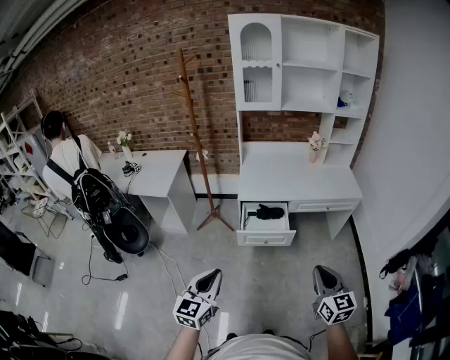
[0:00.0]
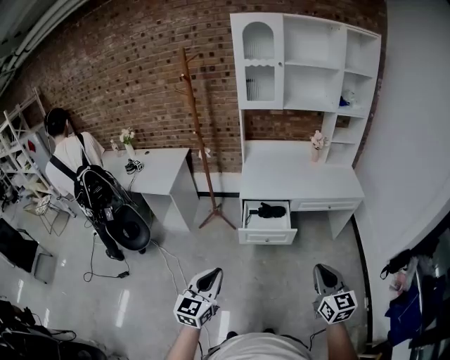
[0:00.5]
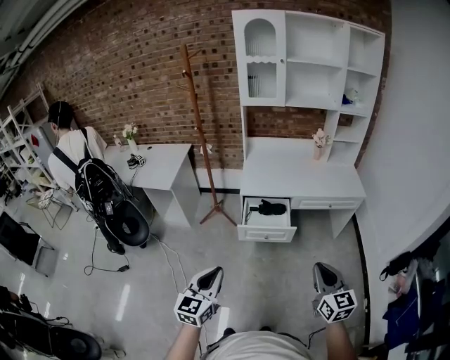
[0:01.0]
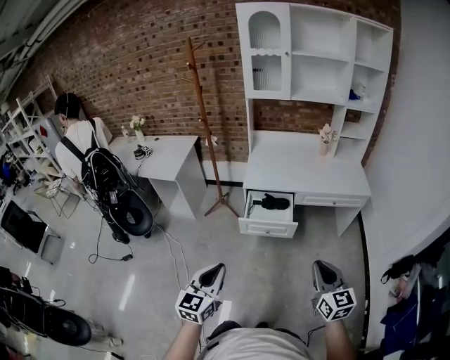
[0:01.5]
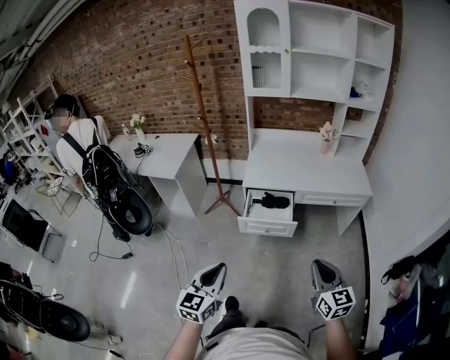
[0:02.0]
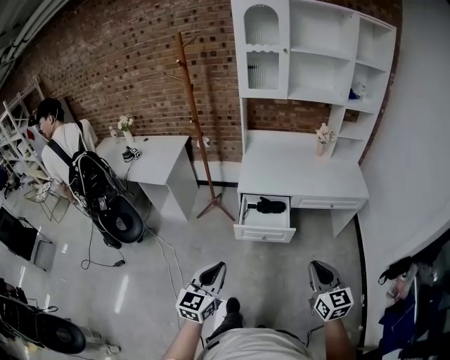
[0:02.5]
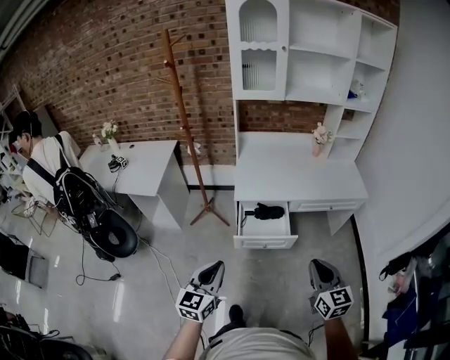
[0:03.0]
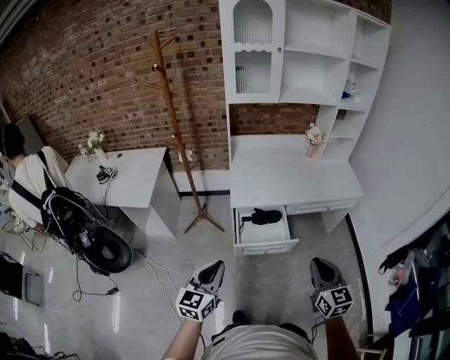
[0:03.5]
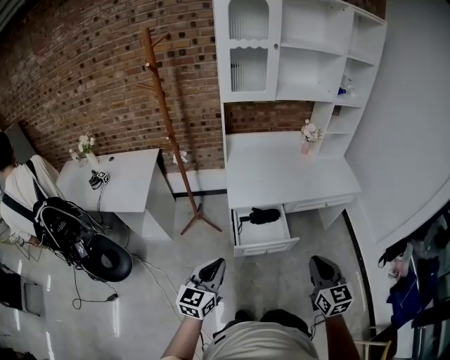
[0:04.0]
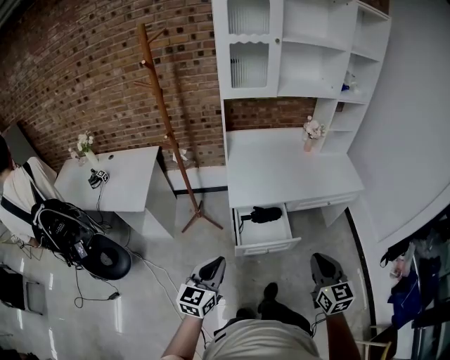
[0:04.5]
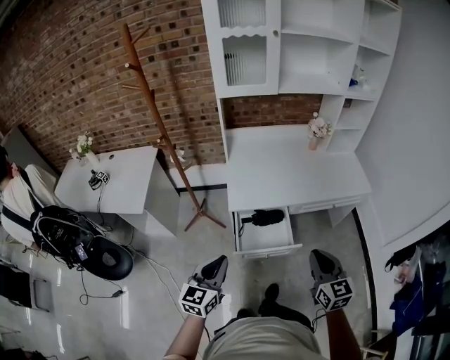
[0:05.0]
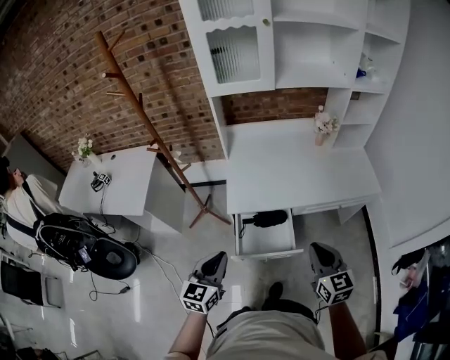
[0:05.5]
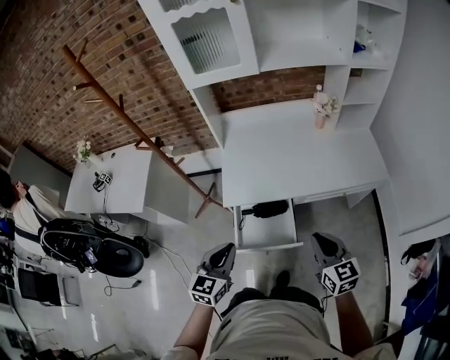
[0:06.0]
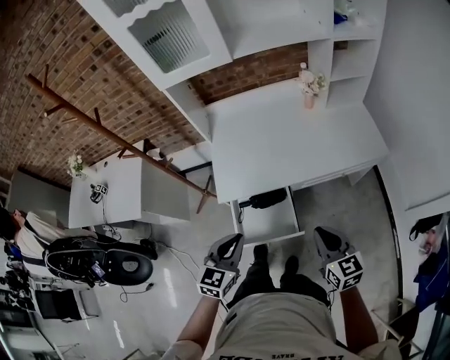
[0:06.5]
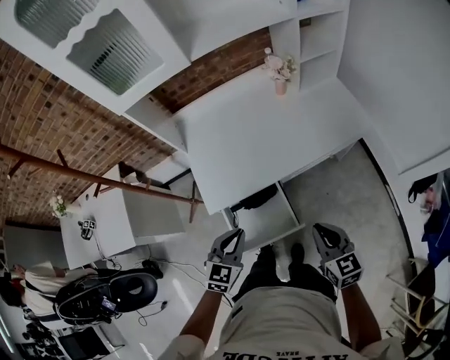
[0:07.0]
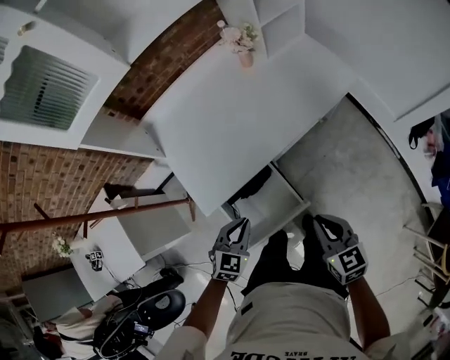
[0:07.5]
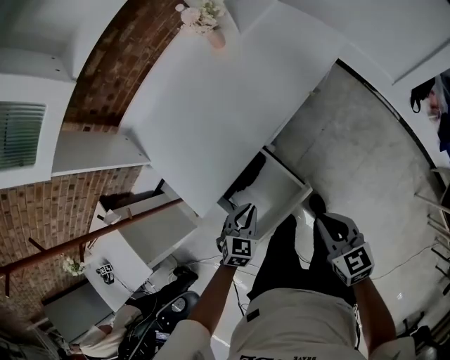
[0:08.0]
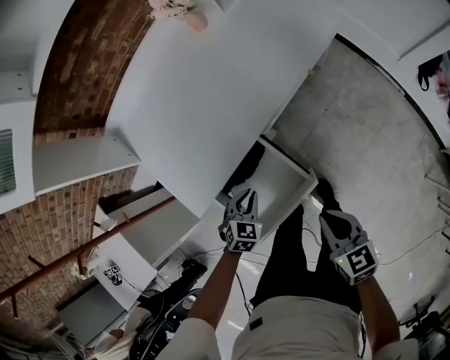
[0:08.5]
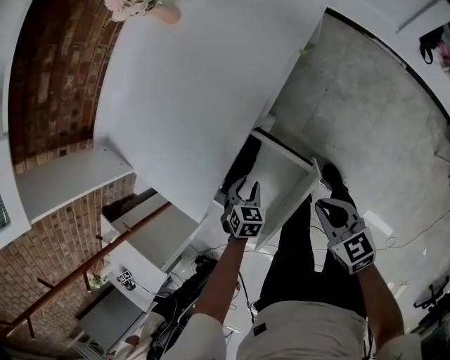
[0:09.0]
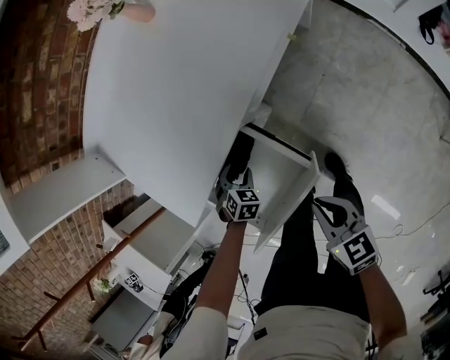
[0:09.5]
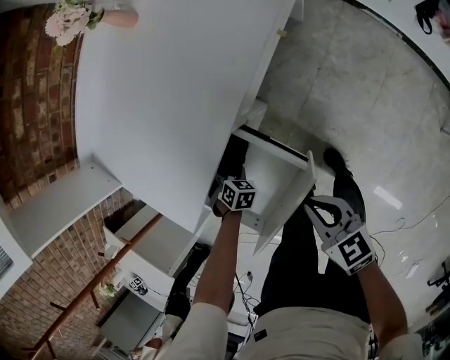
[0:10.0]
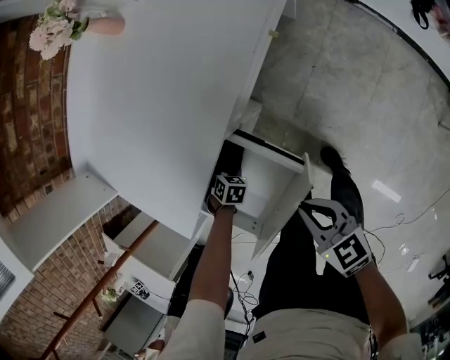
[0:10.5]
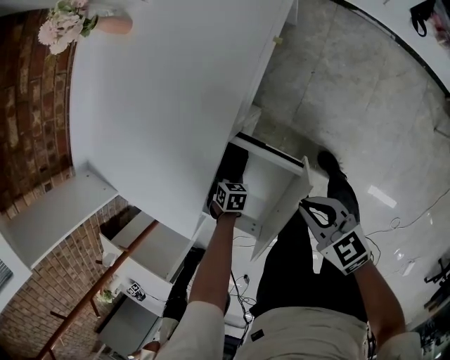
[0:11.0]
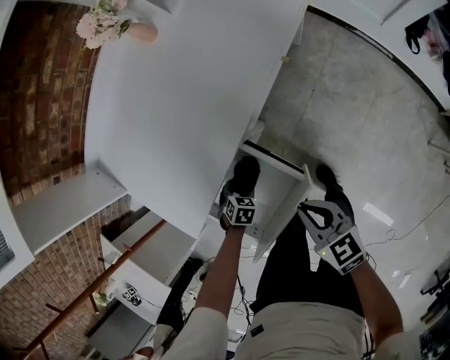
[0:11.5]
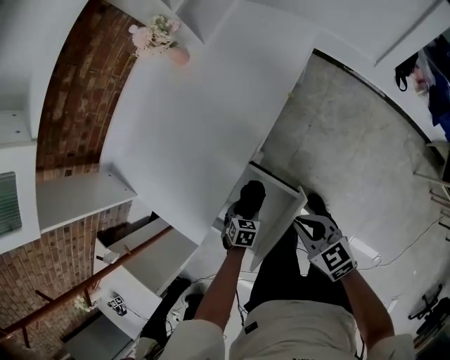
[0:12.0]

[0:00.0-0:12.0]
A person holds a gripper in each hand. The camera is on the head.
0:00.0 to 0:02.0: The two grippers go some 5 cm to the right.
0:02.0 to 0:04.0: The grippers both shift forward and to the left by approximately 25 cm.
0:04.0 to 0:06.0: The two grippers go roughly 25 cm forward and to the right.
0:06.0 to 0:08.0: The left gripper goes approximately 25 cm downward, and rotates roughly 50 degrees. The right gripper moves downward, about 15 cm, and rotates about 30 degrees.
0:08.0 to 0:10.0: The right gripper goes about 15 cm downward. The left gripper moves downward, approximately 25 cm, changes its angle by roughly 40 degrees, and opens up.
0:10.0 to 0:12.0: Both grippers travel together upward, about 10 cm. The left gripper rotates some 30 degrees.

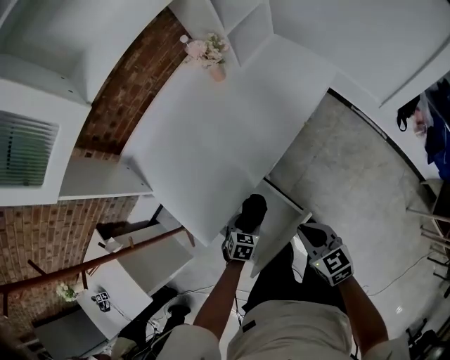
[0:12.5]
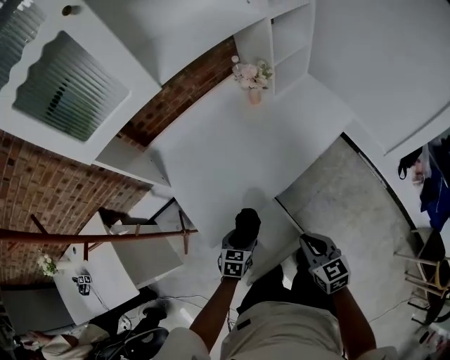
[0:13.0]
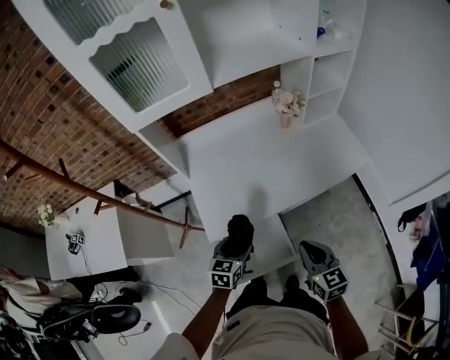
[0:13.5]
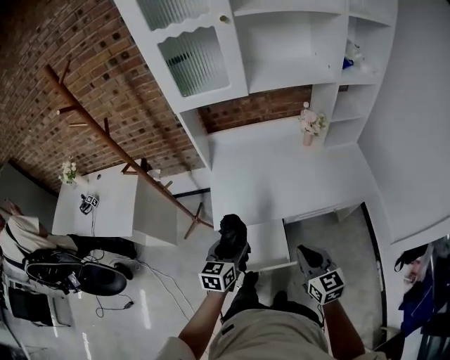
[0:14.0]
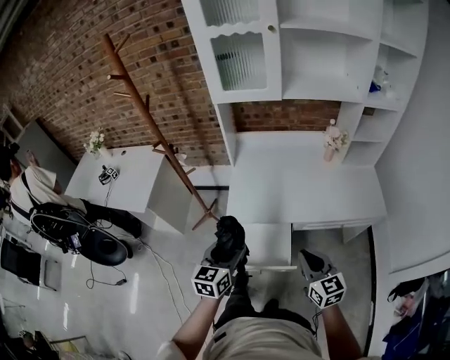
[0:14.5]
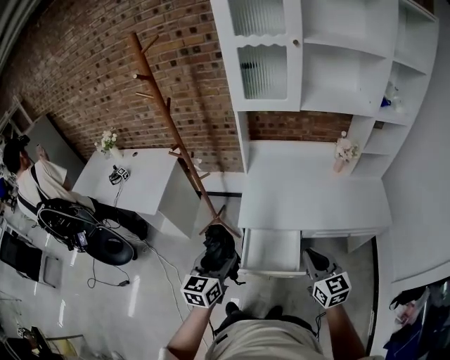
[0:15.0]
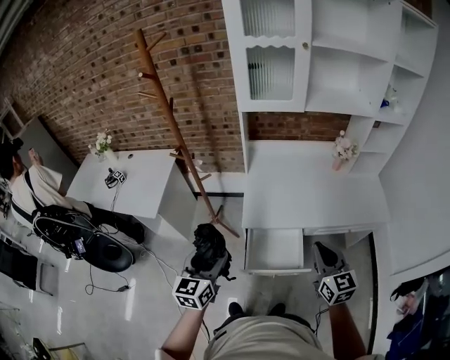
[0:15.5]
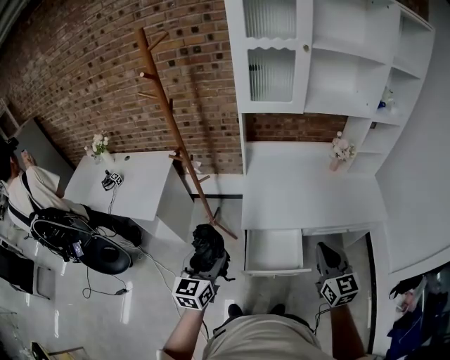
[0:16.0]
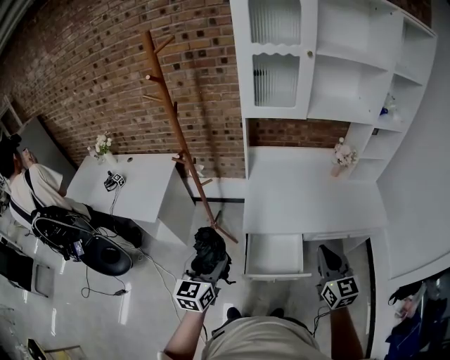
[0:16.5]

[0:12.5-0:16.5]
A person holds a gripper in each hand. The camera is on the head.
0:12.5 to 0:14.5: The right gripper travels upward by approximately 20 cm, and rotates approximately 40 degrees, while the left gripper heads upward, covering some 35 cm, and tips its fingers upward by approximately 40 degrees.
0:14.5 to 0:16.5: The left gripper heads to the left, covering roughly 20 cm. The right gripper travels upward and to the left by some 10 cm.

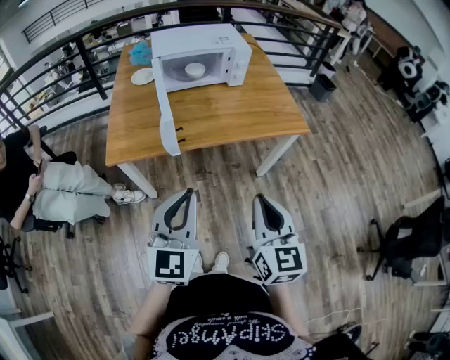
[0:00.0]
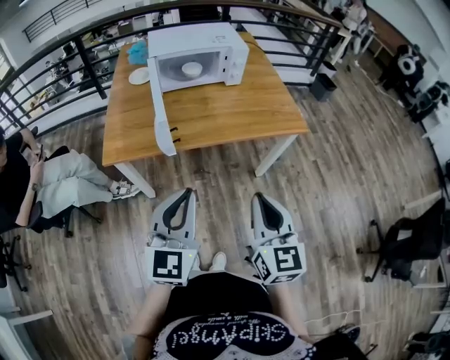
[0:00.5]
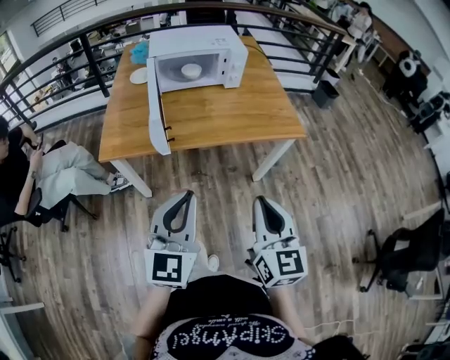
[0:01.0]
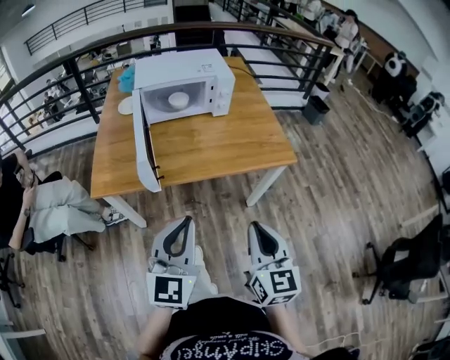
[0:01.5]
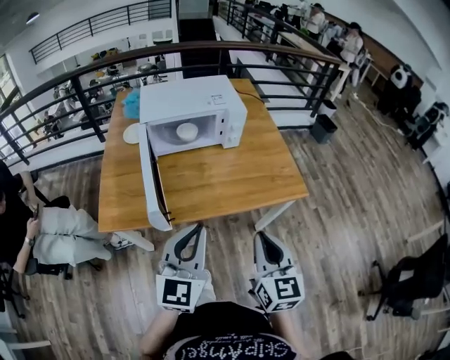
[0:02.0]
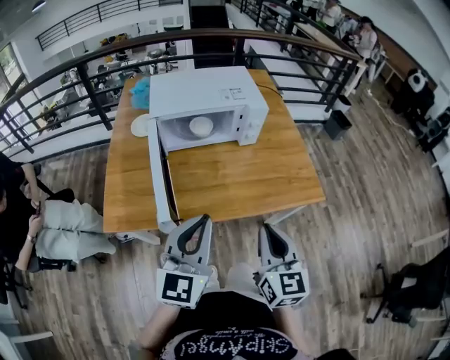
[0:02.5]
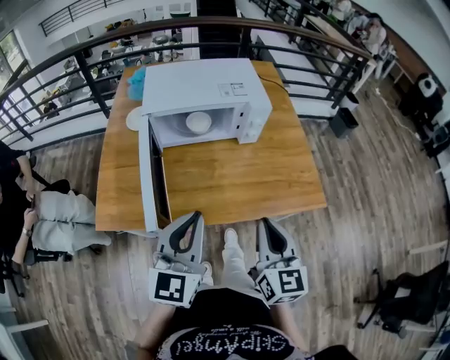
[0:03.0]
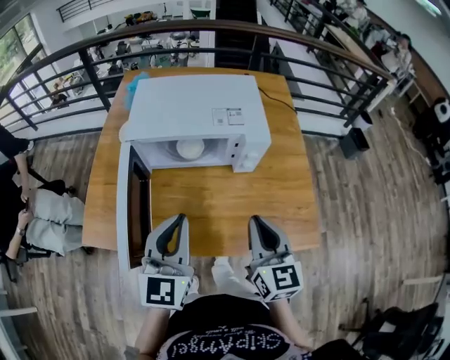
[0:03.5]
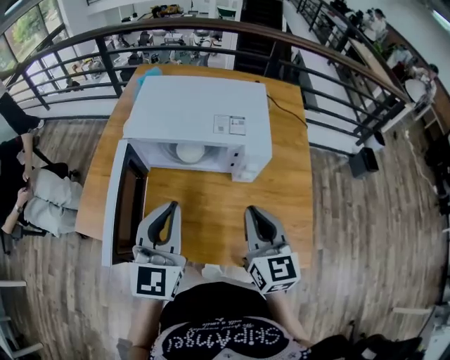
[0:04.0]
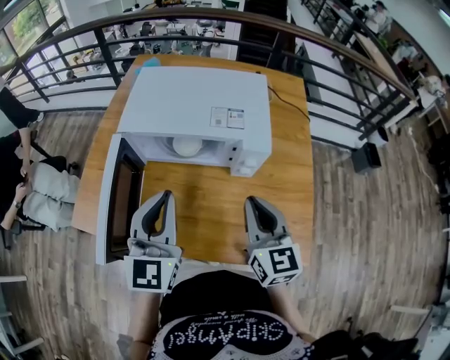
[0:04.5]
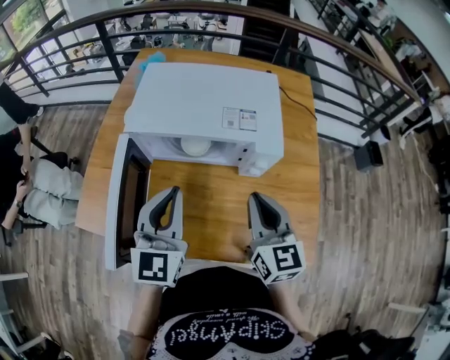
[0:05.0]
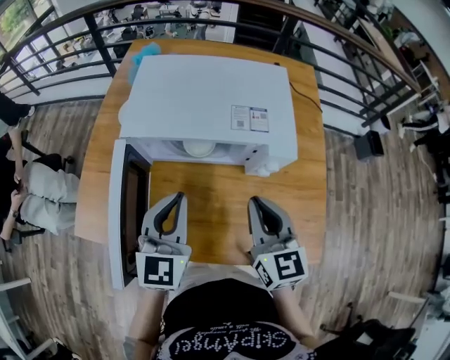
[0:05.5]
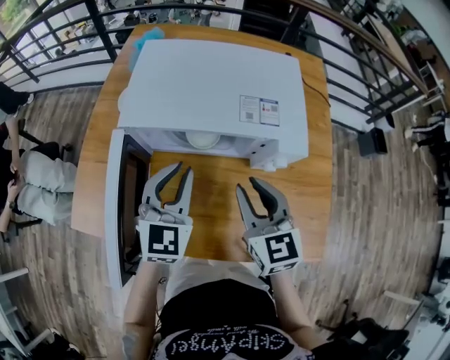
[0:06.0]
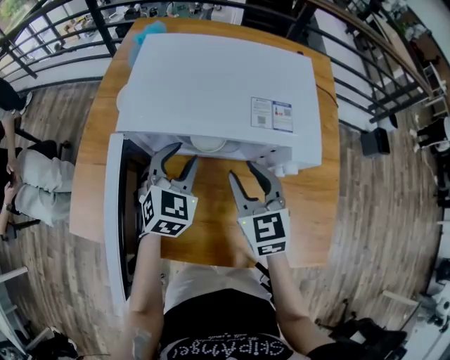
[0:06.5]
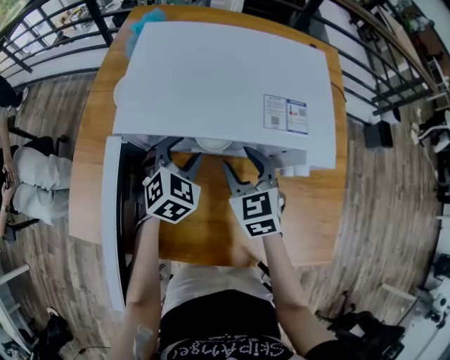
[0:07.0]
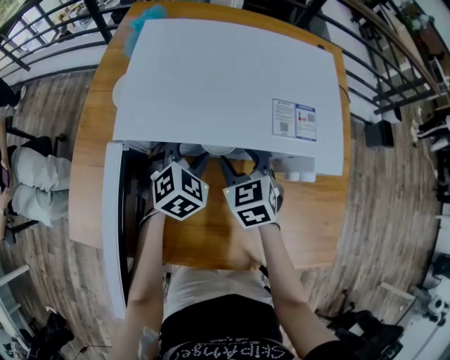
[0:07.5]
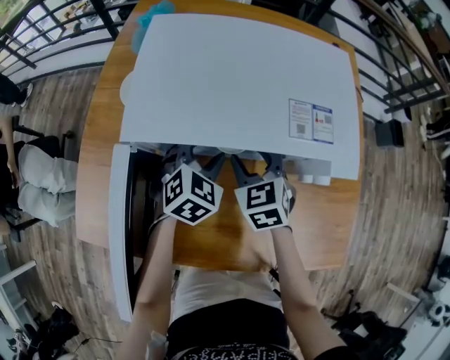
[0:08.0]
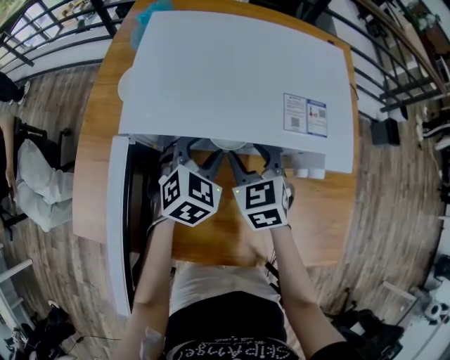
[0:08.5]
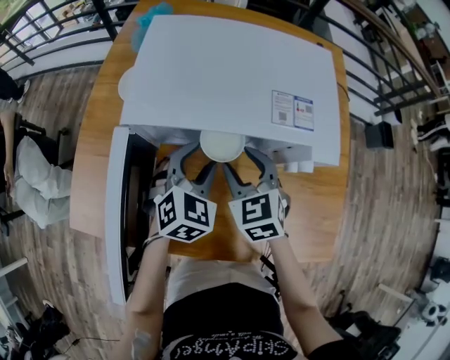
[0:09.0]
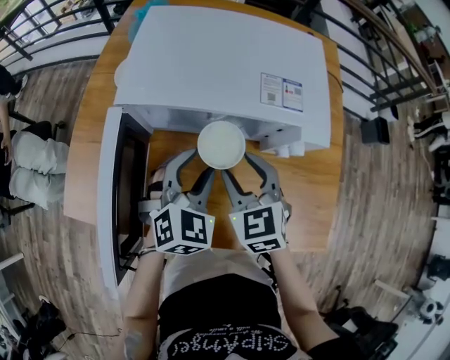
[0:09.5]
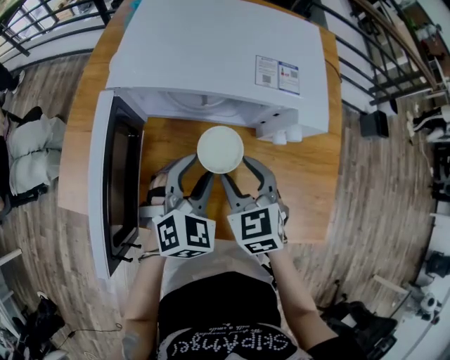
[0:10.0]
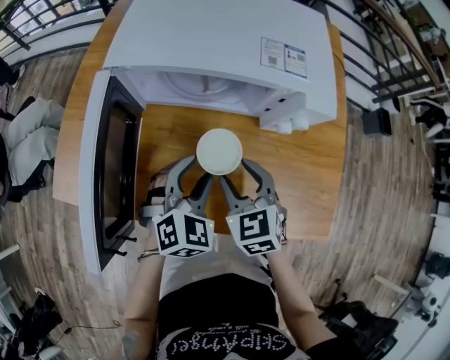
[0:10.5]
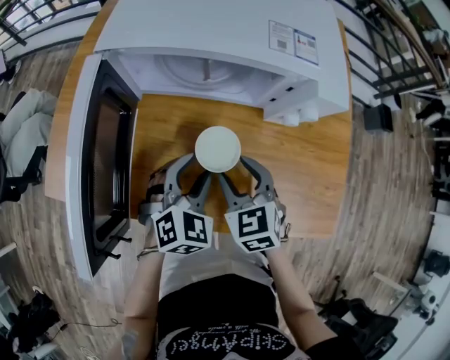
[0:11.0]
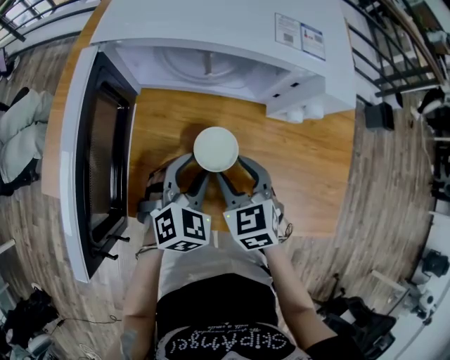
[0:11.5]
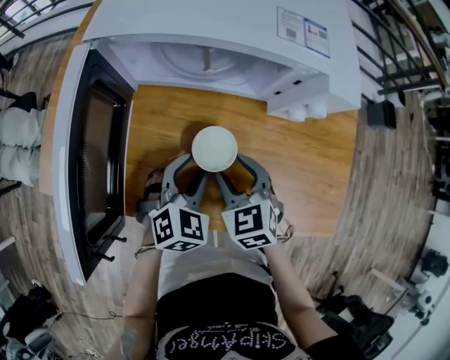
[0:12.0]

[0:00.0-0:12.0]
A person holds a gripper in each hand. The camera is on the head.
0:00.0 to 0:02.0: The two grippers go some 15 cm forward.
0:02.0 to 0:04.0: The two grippers go some 30 cm forward. The right gripper changes its angle by approximately 20 degrees; the left gripper changes its angle by approximately 20 degrees.
0:04.0 to 0:06.0: The right gripper goes approximately 10 cm forward and to the left. Meanwhile the left gripper is displaced forward and downward by roughly 15 cm.
0:06.0 to 0:08.0: The left gripper is displaced downward and forward by approximately 20 cm, turns by about 30 degrees, and opens; the right gripper heads downward, forward and to the left, covering some 20 cm, turns by about 20 degrees, and opens up.
0:08.0 to 0:10.0: Both grippers travel together backward, some 15 cm.
0:10.0 to 0:12.0: Both grippers travel together downward, approximately 10 cm.
